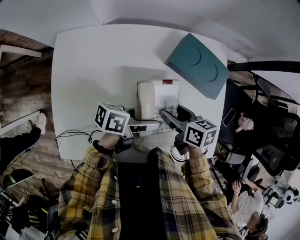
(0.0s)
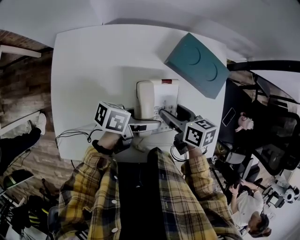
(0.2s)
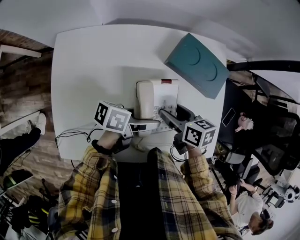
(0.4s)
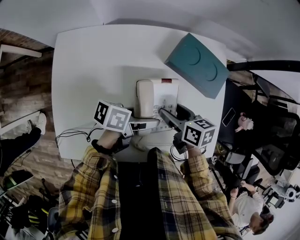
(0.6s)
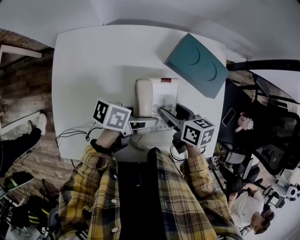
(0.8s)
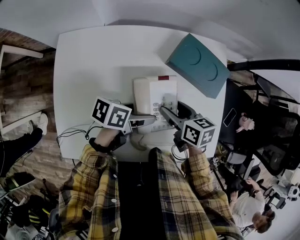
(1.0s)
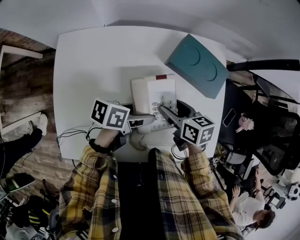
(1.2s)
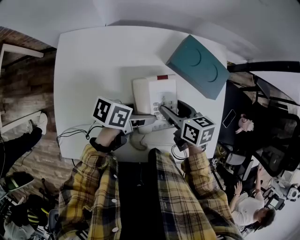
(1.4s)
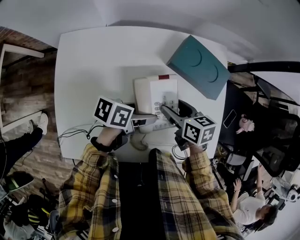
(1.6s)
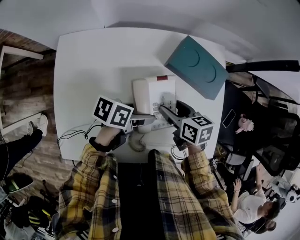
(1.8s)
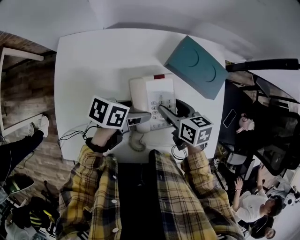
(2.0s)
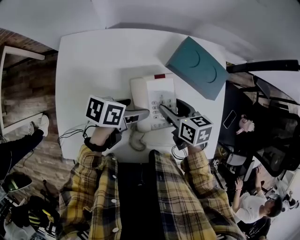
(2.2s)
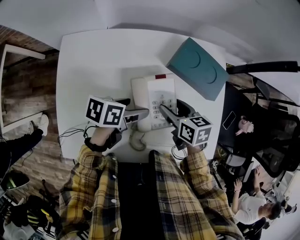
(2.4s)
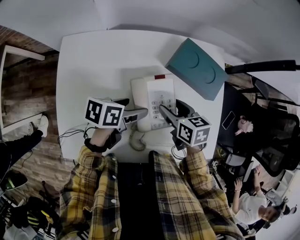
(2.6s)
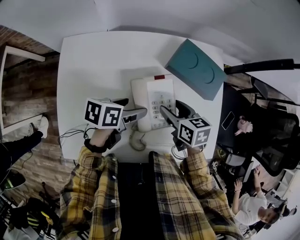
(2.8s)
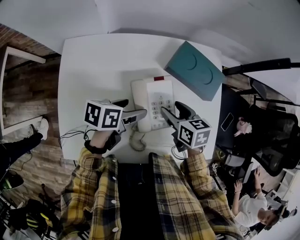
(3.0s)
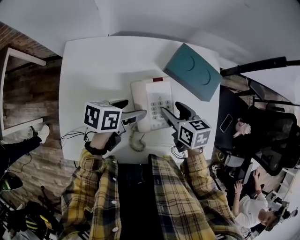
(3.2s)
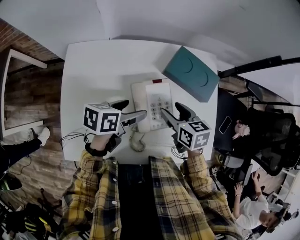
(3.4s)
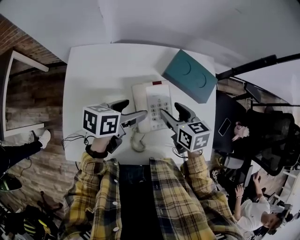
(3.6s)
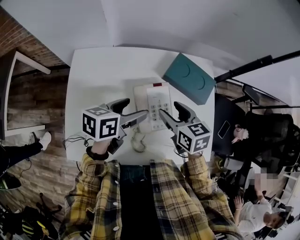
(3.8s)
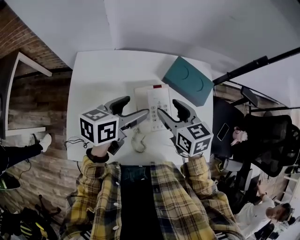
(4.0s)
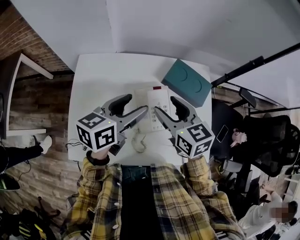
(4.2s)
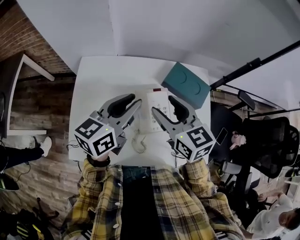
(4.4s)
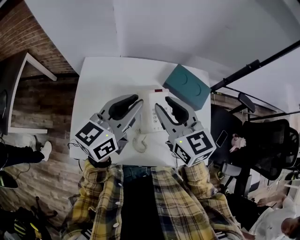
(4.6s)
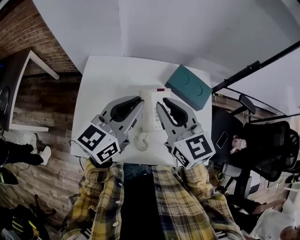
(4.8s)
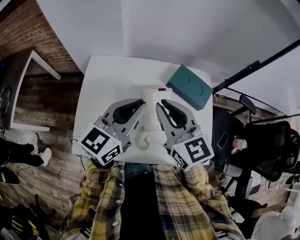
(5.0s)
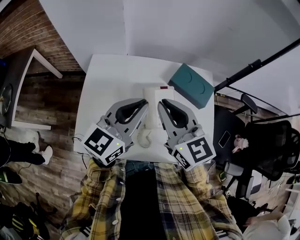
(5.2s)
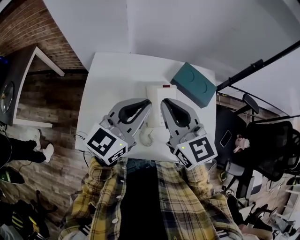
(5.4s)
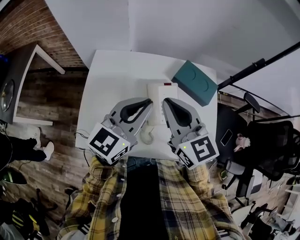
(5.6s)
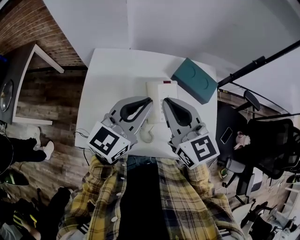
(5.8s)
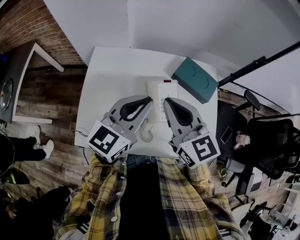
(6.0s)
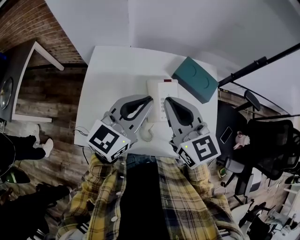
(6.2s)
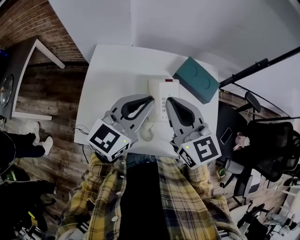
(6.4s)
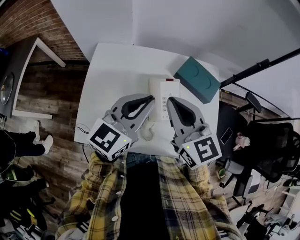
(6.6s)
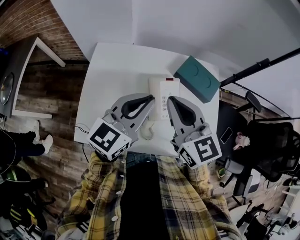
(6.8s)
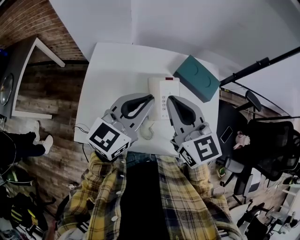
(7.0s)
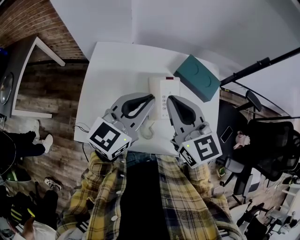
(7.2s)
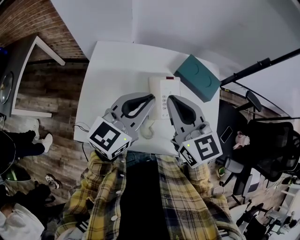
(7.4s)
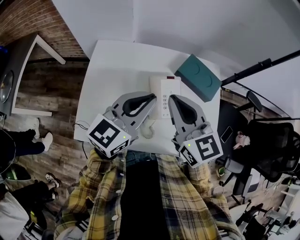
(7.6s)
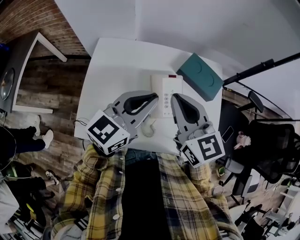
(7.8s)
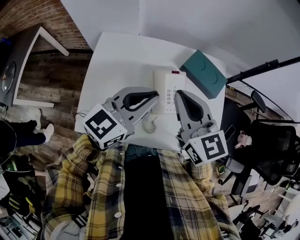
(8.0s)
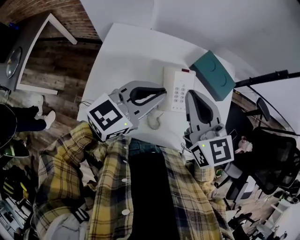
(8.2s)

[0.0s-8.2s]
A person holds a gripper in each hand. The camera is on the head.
0.0s to 1.6s: The grippers stay close to where they were, moving slightly.
1.6s to 3.2s: The left gripper moves approximately 5 cm.
3.2s to 5.0s: The grippers both shift upward by about 25 cm. The right gripper tips its fingers upward by roughly 30 degrees, and closes up. Meanwhile the left gripper angles its fingers upward, by roughly 40 degrees, and closes.
5.0s to 8.2s: The grippers move only a little.

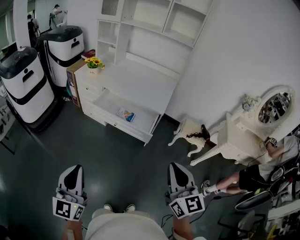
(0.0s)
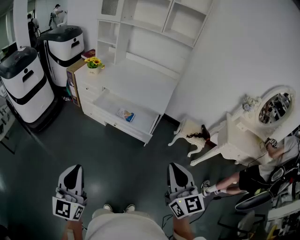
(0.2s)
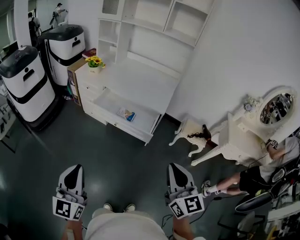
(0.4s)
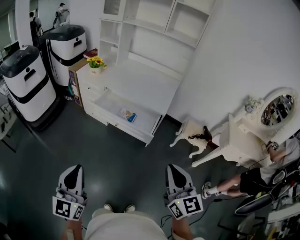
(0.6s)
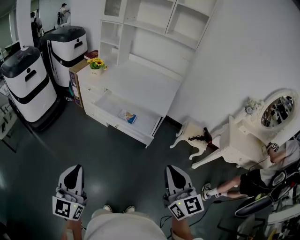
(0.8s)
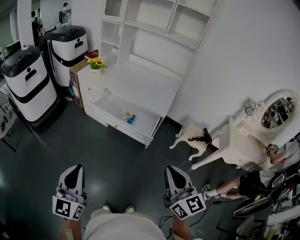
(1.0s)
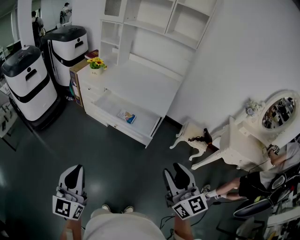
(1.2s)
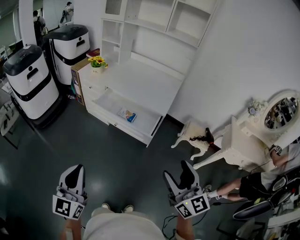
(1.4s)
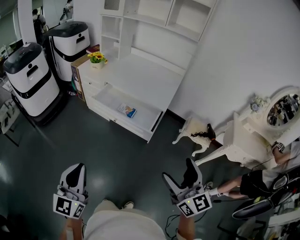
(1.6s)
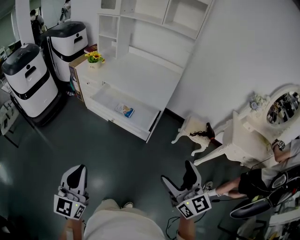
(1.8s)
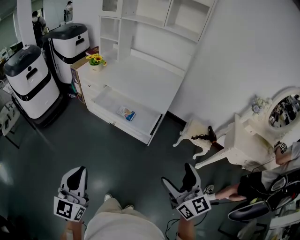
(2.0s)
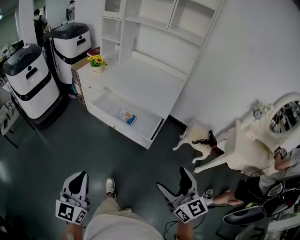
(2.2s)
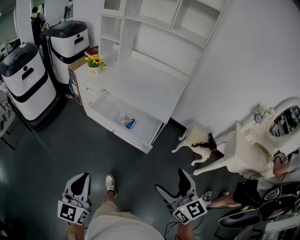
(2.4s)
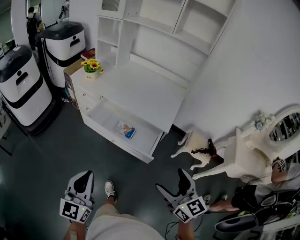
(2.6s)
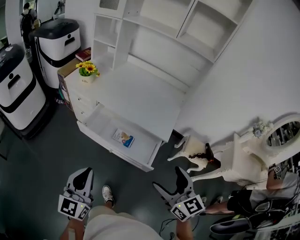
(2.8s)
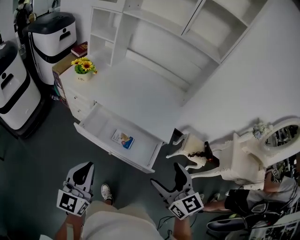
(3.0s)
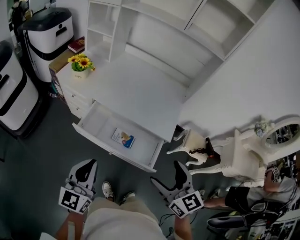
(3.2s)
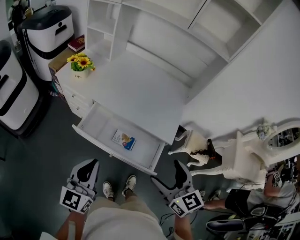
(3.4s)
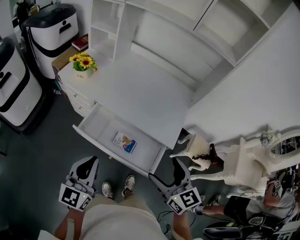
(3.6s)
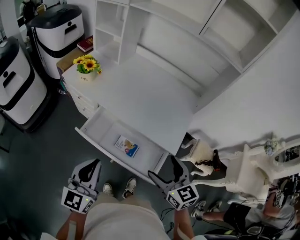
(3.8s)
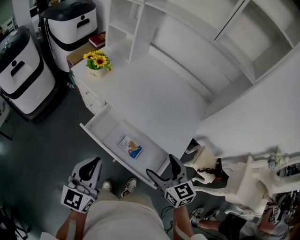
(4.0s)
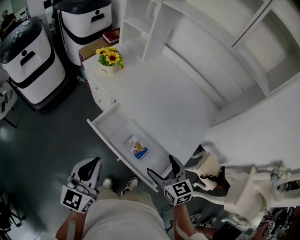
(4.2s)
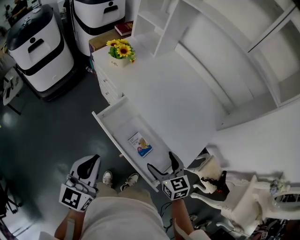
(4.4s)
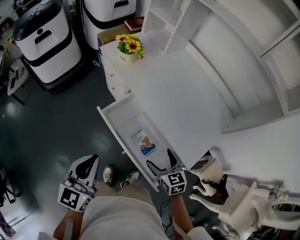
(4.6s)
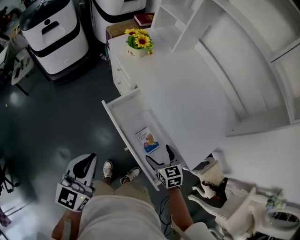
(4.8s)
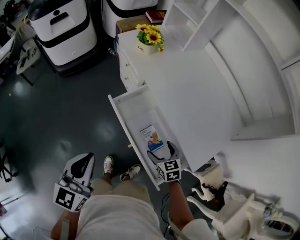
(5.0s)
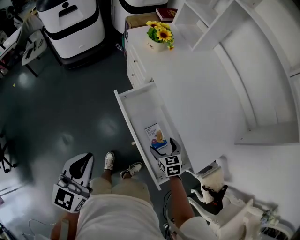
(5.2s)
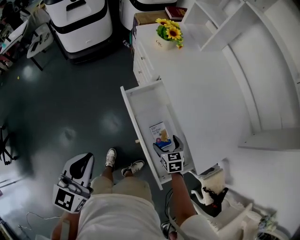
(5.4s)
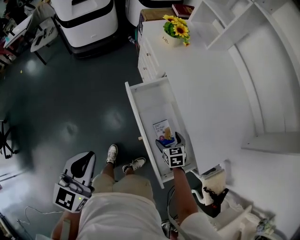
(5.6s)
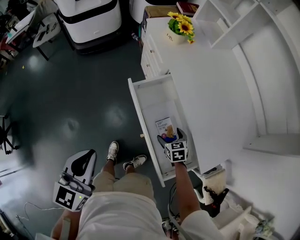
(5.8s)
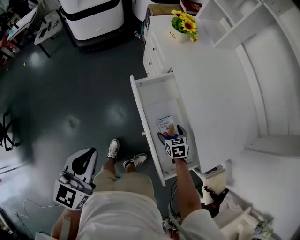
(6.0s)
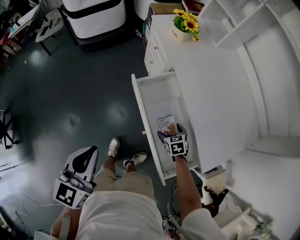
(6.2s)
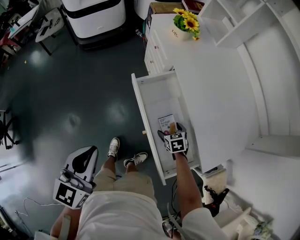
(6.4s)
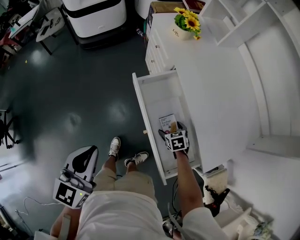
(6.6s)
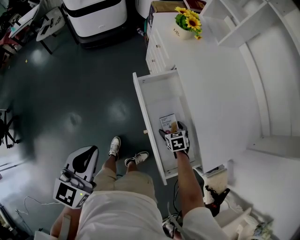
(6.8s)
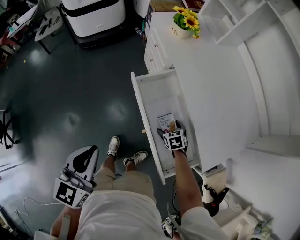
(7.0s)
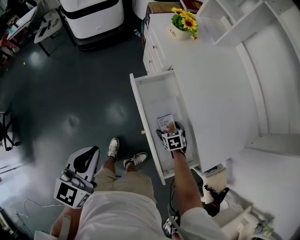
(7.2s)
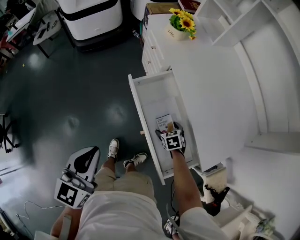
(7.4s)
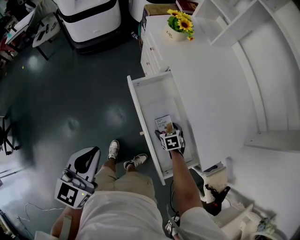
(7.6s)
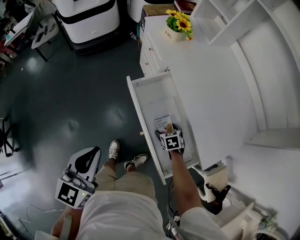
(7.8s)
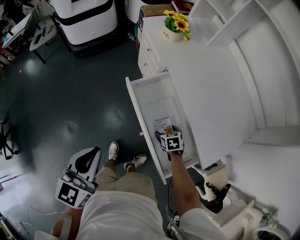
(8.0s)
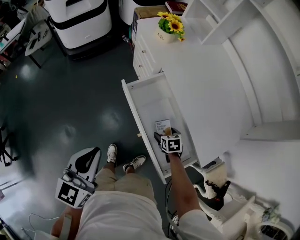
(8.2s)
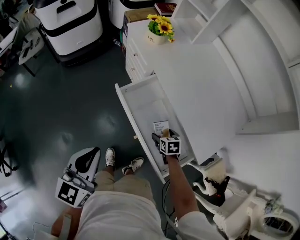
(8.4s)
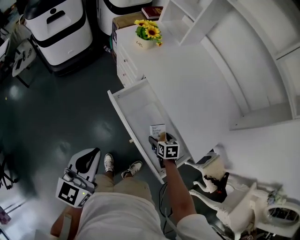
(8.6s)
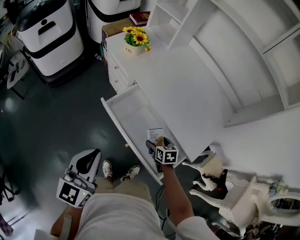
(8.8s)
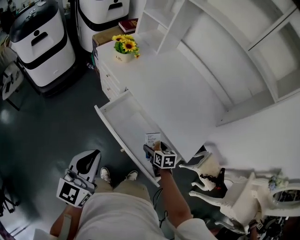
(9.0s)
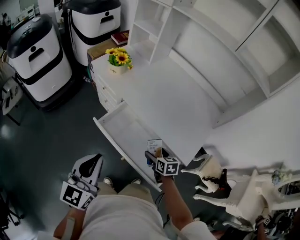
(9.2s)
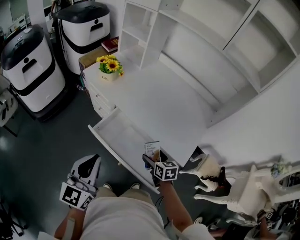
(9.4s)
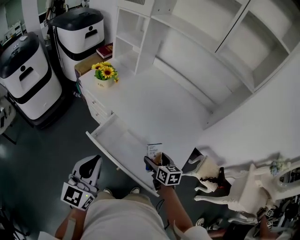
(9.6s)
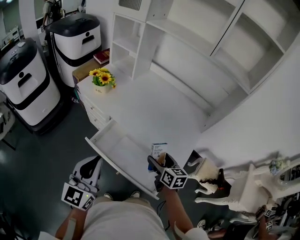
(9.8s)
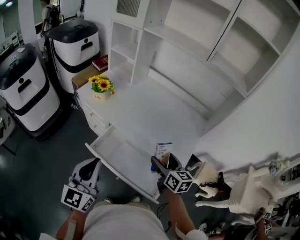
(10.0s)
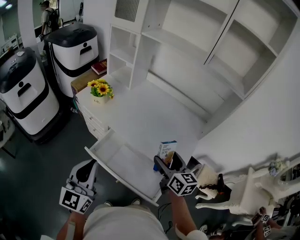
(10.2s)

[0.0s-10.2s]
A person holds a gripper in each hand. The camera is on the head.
0.0s to 1.4s: The right gripper opens up.
1.4s to 3.0s: Both grippers move forward, some 35 cm.
3.0s to 4.4s: The right gripper travels forward and downward by approximately 25 cm, and swivels roughly 30 degrees, while the left gripper is displaced forward by roughly 10 cm, and turns by some 20 degrees.
4.4s to 5.8s: The left gripper is displaced to the left and backward by some 10 cm, and turns by some 20 degrees, while the right gripper goes roughly 20 cm downward, and turns by about 30 degrees.
5.8s to 7.2s: The right gripper moves downward, some 5 cm.
7.2s to 8.8s: The left gripper shifts by roughly 5 cm. The right gripper shifts some 10 cm upward, and turns by roughly 30 degrees.
8.8s to 10.2s: The left gripper travels upward and forward by about 10 cm; the right gripper moves upward, roughly 30 cm, and tips its fingers upward by approximately 40 degrees.

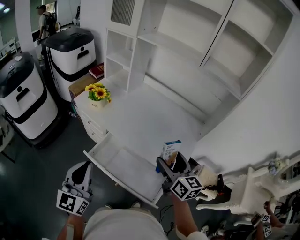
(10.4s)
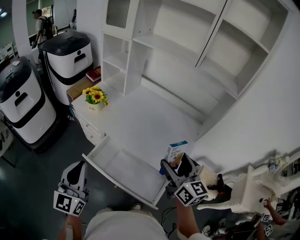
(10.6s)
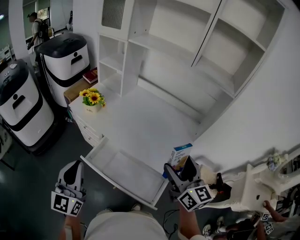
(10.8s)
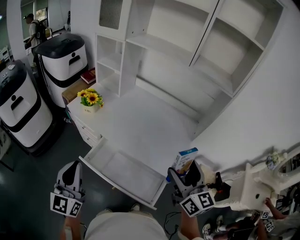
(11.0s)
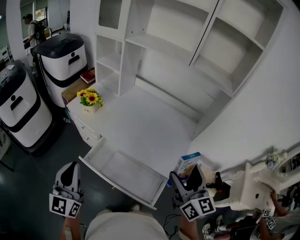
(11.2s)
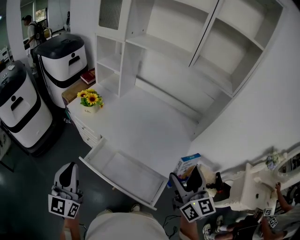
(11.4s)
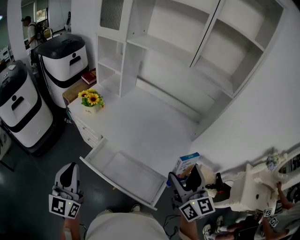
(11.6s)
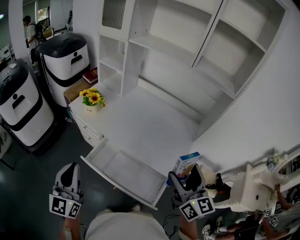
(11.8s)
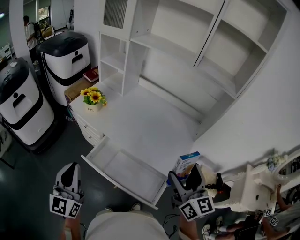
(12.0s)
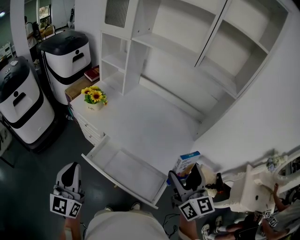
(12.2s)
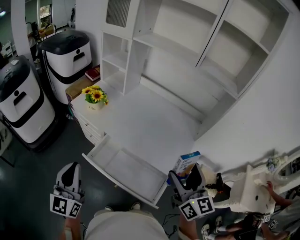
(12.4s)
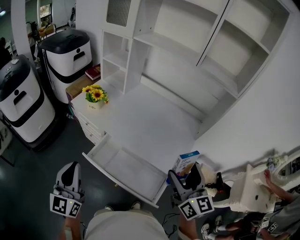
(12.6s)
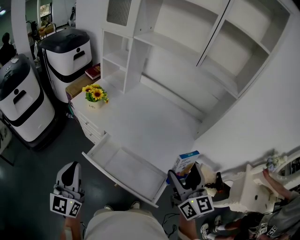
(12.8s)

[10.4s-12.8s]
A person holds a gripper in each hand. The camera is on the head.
10.4s to 11.6s: The right gripper travels upward and backward by about 10 cm.
11.6s to 12.8s: The grippers make only small movements.

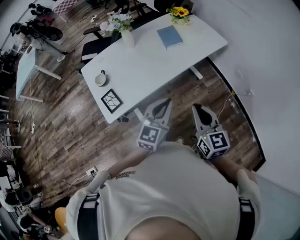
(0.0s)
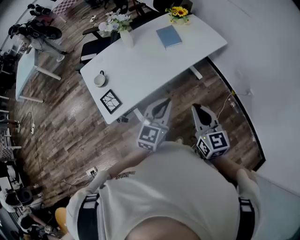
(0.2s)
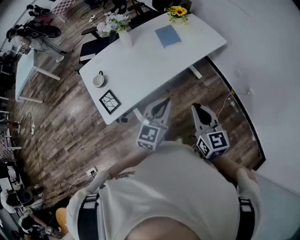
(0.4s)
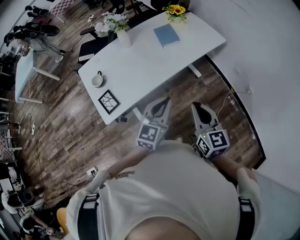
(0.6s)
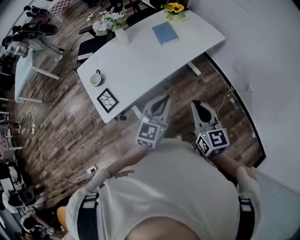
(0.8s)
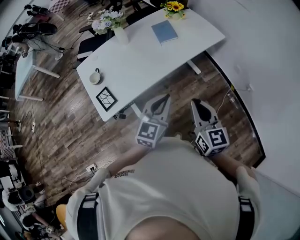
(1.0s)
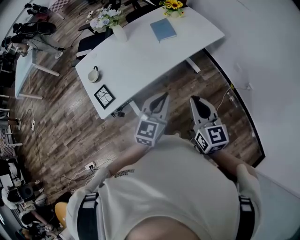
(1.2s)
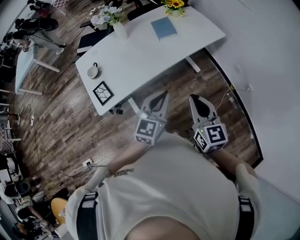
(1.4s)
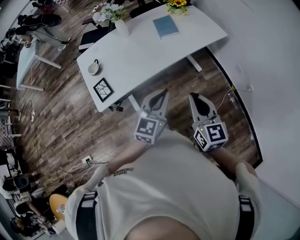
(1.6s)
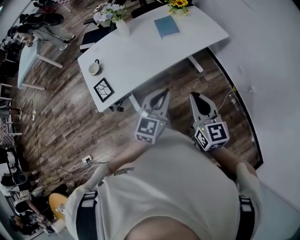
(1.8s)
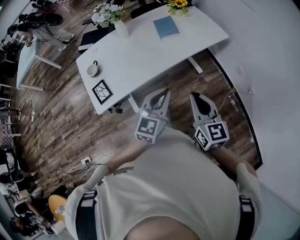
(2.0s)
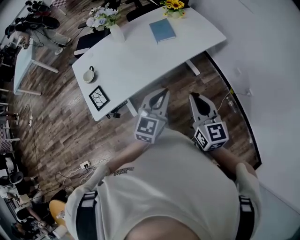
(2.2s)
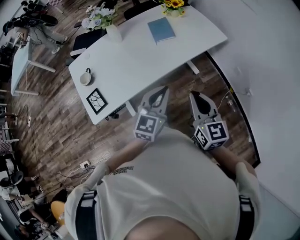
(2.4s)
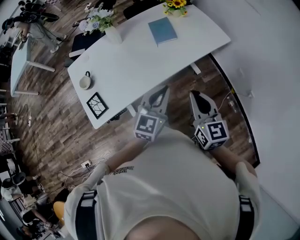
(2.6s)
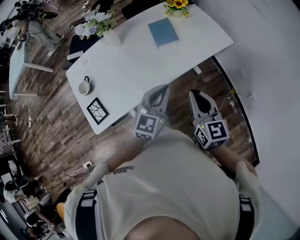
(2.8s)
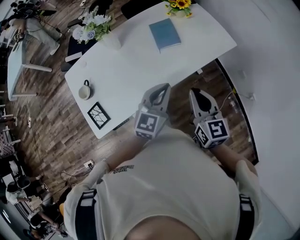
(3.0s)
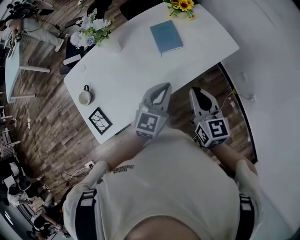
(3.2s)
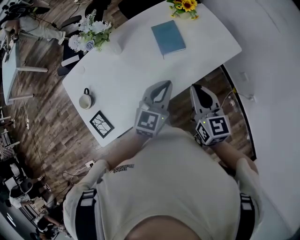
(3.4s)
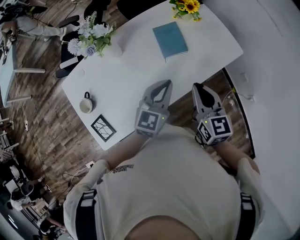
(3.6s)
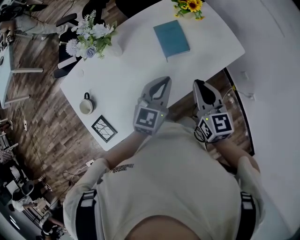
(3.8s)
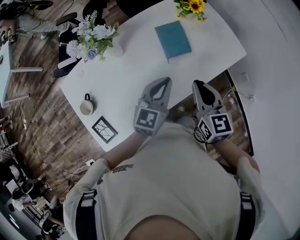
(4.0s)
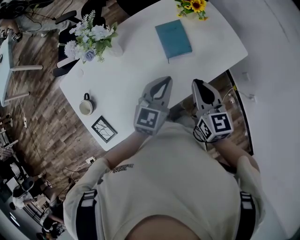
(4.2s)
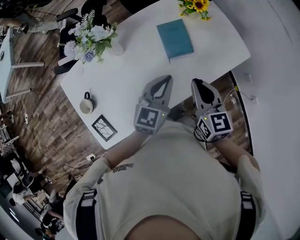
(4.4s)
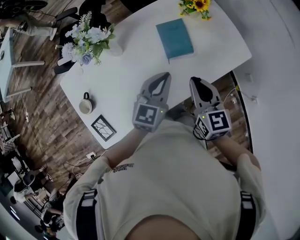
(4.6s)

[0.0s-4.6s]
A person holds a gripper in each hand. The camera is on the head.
0.0s to 1.6s: Both grippers travel together to the right, roughly 5 cm.
1.6s to 3.0s: Both grippers move forward, some 25 cm.
3.0s to 4.6s: Both grippers move forward, roughly 15 cm.
